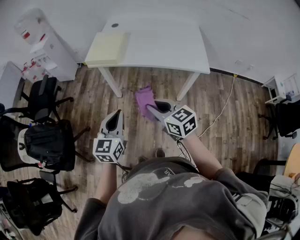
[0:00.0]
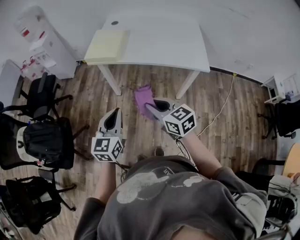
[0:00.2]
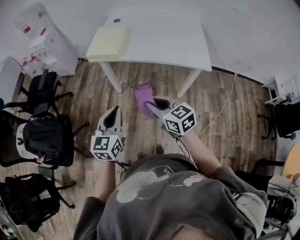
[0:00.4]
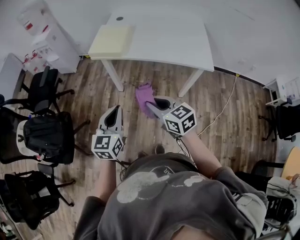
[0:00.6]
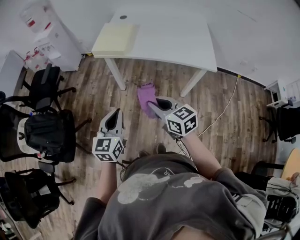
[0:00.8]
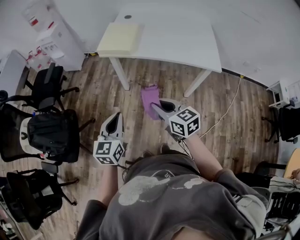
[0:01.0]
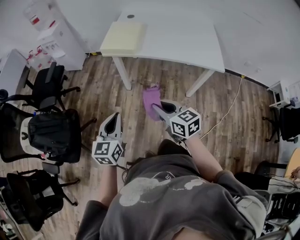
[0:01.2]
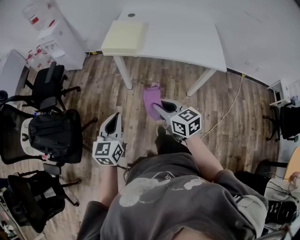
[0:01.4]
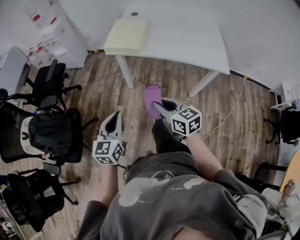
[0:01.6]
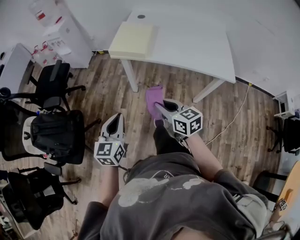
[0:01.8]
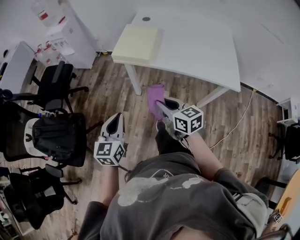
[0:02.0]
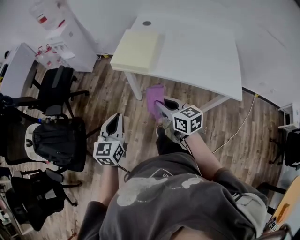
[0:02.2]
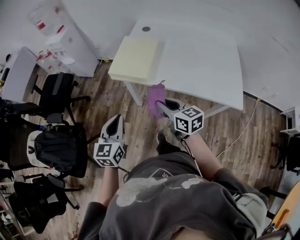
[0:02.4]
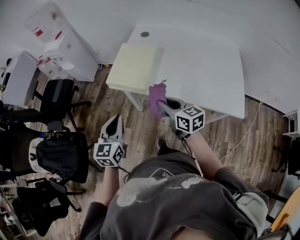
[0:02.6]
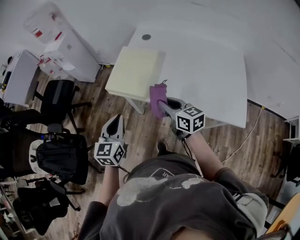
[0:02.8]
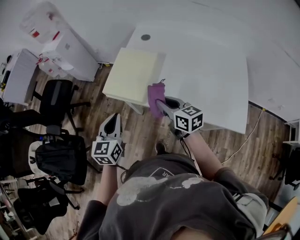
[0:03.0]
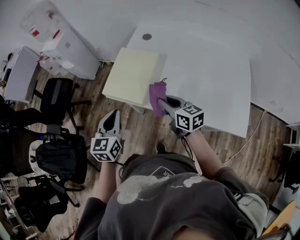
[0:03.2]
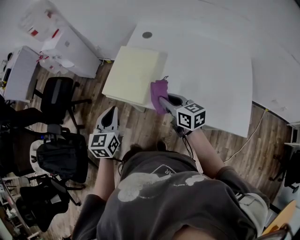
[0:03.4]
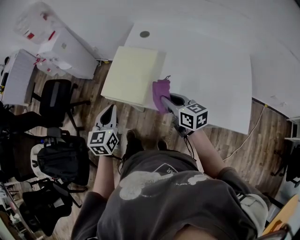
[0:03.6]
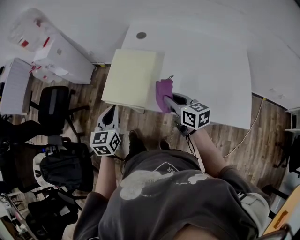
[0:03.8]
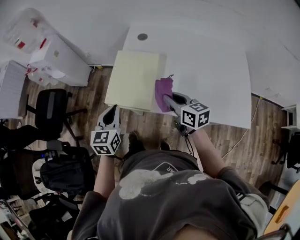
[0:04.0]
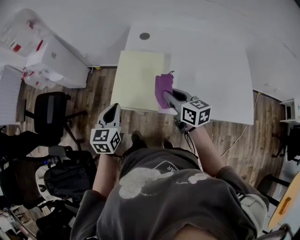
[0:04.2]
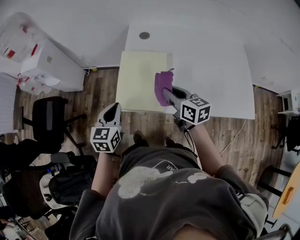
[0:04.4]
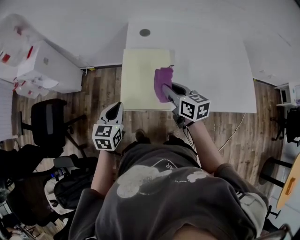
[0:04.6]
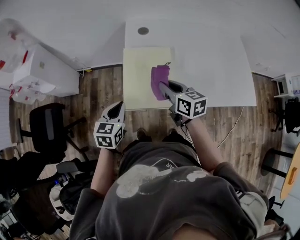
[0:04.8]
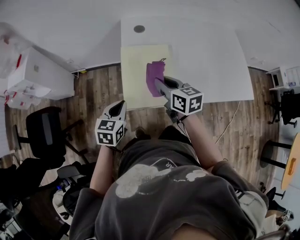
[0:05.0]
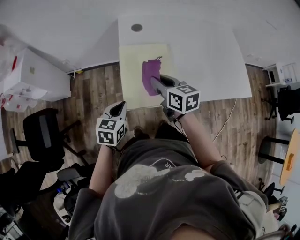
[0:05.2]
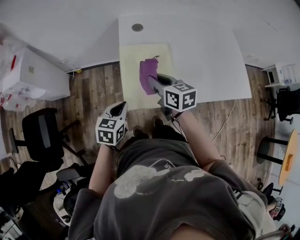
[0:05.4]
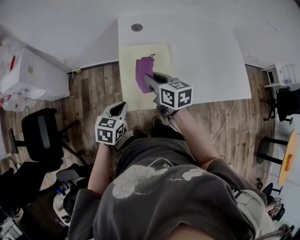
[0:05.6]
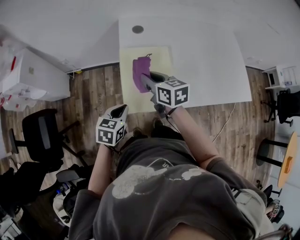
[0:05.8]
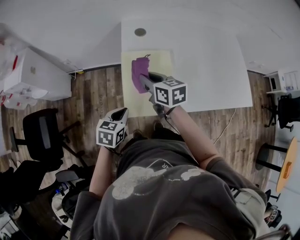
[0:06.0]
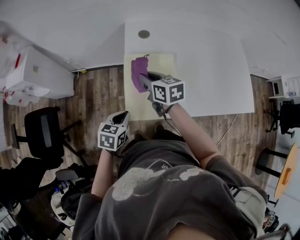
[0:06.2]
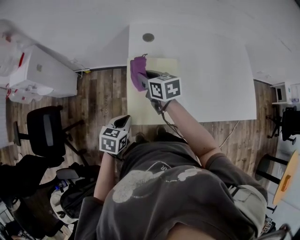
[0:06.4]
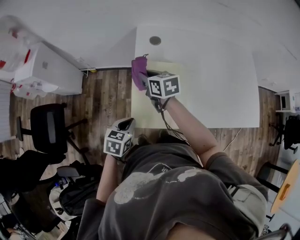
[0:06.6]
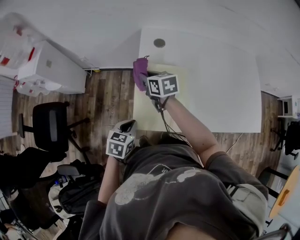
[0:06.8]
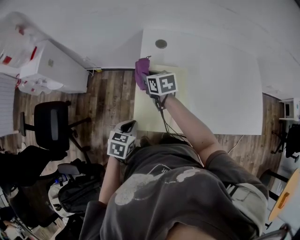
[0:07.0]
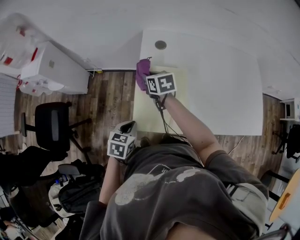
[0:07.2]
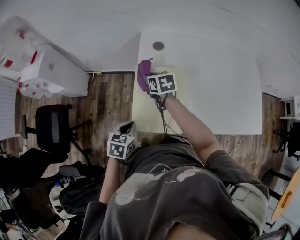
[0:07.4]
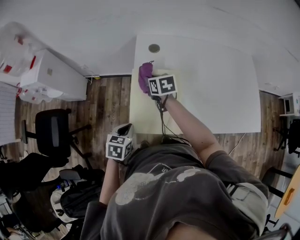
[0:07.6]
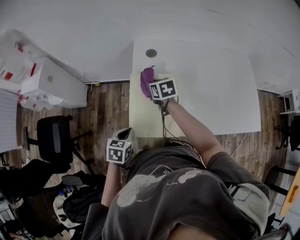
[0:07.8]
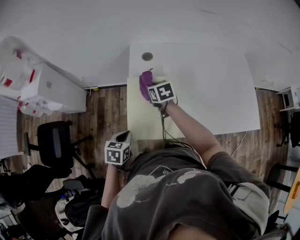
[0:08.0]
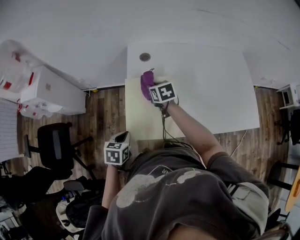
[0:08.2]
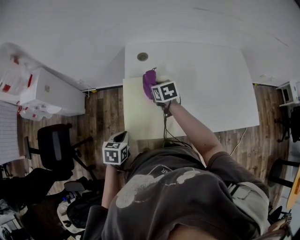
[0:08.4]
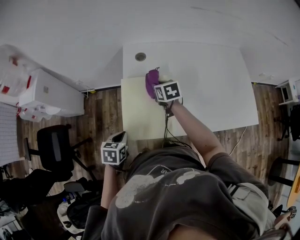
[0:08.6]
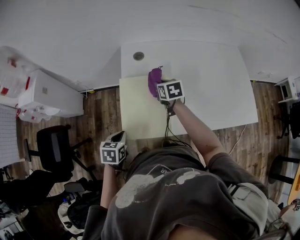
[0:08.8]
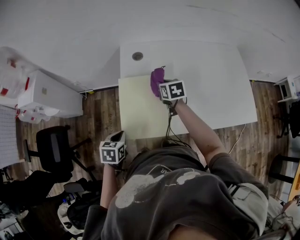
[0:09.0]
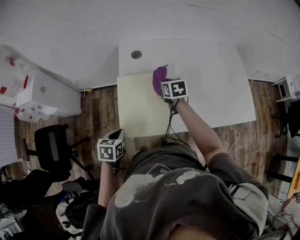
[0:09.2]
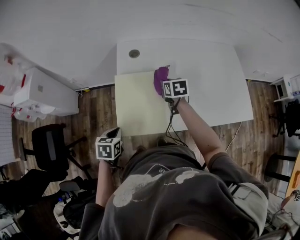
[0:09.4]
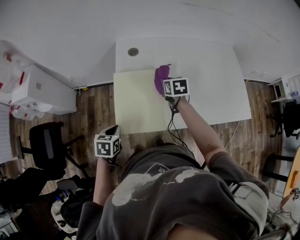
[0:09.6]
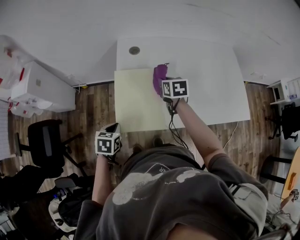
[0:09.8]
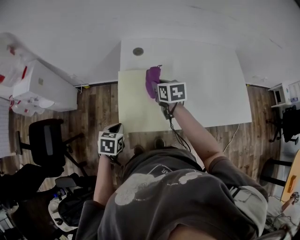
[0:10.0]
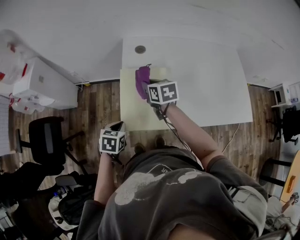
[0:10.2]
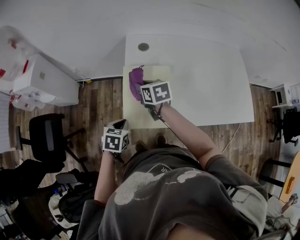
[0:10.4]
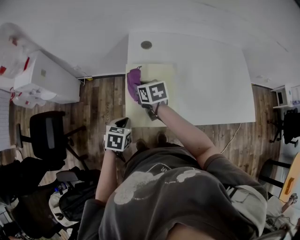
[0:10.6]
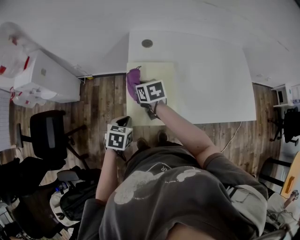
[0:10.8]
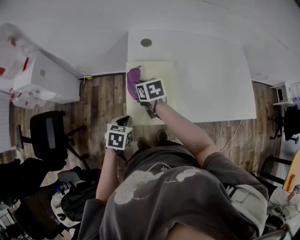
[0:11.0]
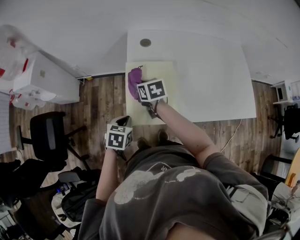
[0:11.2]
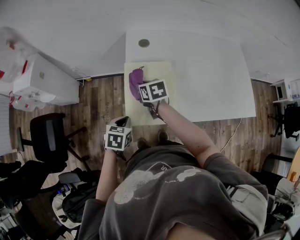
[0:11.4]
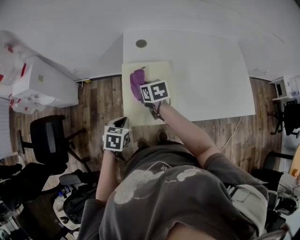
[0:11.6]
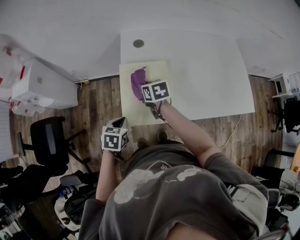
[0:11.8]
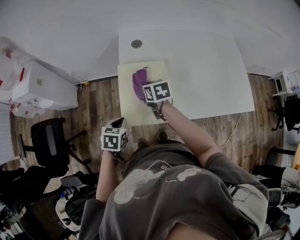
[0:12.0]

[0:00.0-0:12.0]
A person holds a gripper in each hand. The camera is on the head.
0:00.0 to 0:01.6: The grippers both shift to the left by about 10 cm.
0:01.6 to 0:03.0: Both grippers move forward and to the right, approximately 40 cm.
0:03.0 to 0:04.4: Both grippers travel together forward and to the left, some 20 cm.
0:04.4 to 0:06.0: The right gripper shifts approximately 15 cm to the left and forward; the left gripper is displaced downward by about 10 cm, and changes its angle by some 30 degrees.
0:06.0 to 0:07.6: The right gripper travels forward and downward by roughly 10 cm.
0:07.6 to 0:09.0: The right gripper goes approximately 15 cm to the right.
0:09.0 to 0:10.4: The right gripper heads to the left and backward, covering about 15 cm.
0:10.4 to 0:12.0: The right gripper changes place by roughly 5 cm.

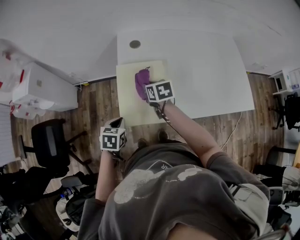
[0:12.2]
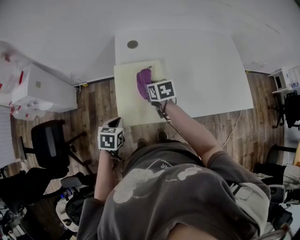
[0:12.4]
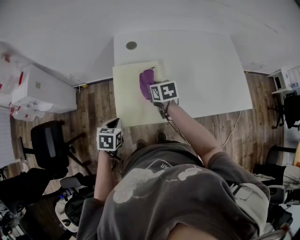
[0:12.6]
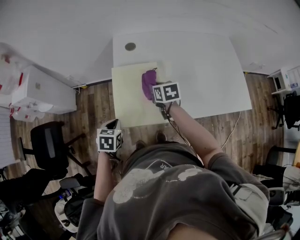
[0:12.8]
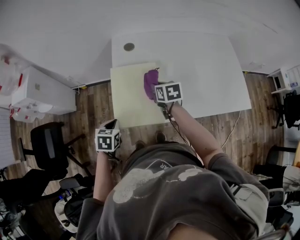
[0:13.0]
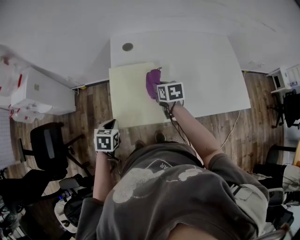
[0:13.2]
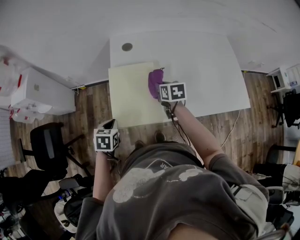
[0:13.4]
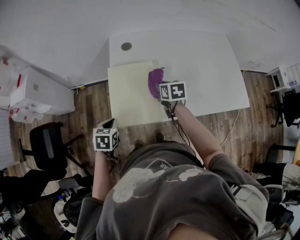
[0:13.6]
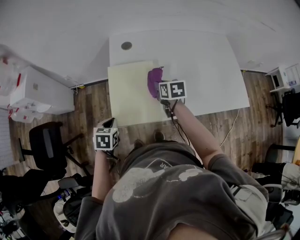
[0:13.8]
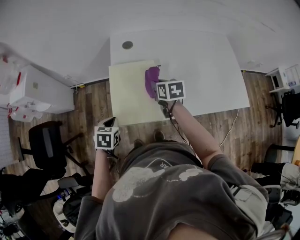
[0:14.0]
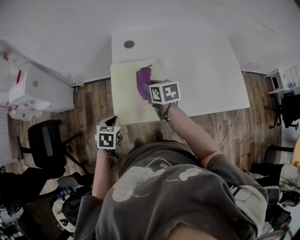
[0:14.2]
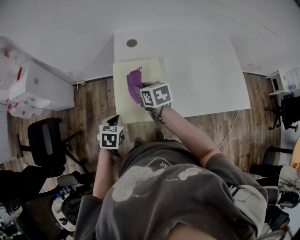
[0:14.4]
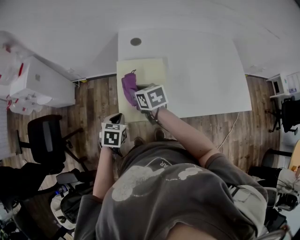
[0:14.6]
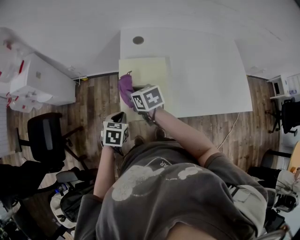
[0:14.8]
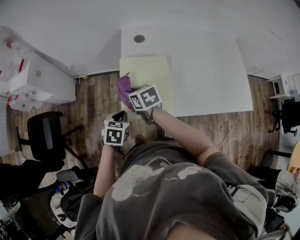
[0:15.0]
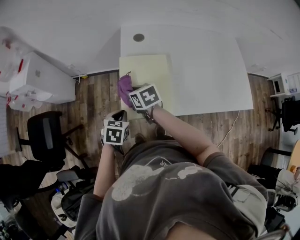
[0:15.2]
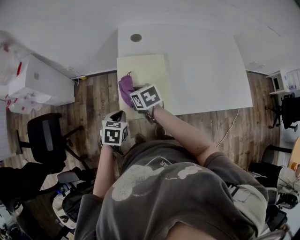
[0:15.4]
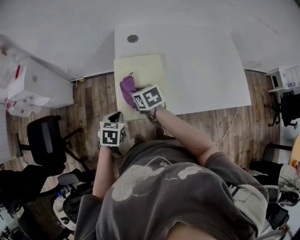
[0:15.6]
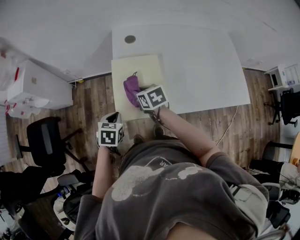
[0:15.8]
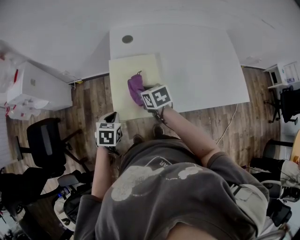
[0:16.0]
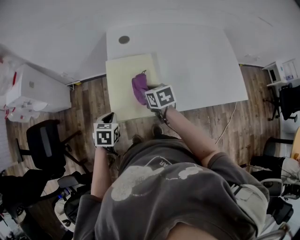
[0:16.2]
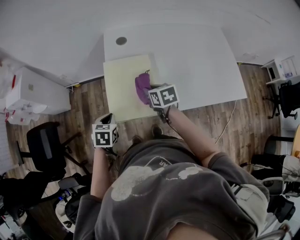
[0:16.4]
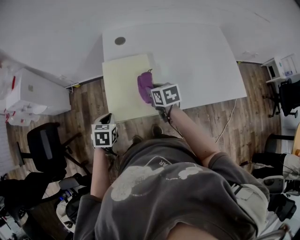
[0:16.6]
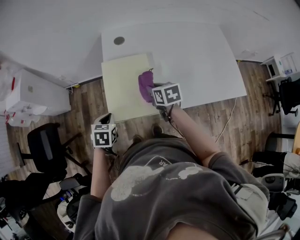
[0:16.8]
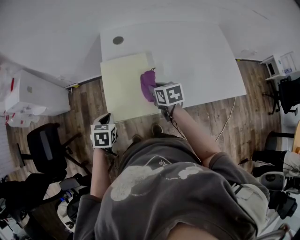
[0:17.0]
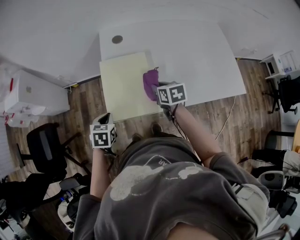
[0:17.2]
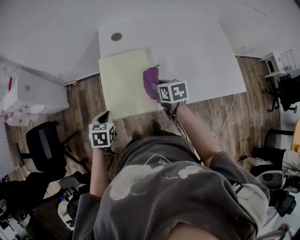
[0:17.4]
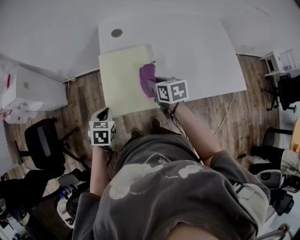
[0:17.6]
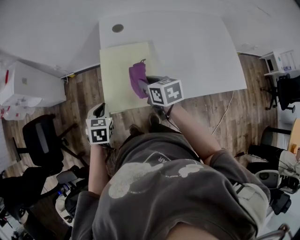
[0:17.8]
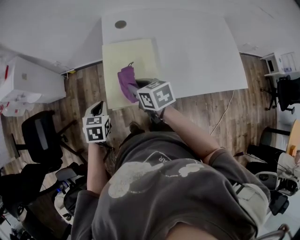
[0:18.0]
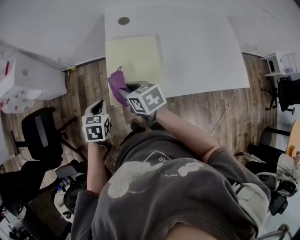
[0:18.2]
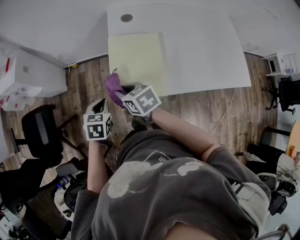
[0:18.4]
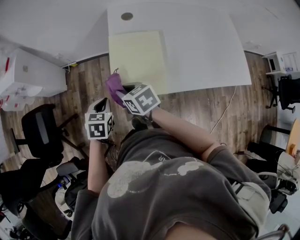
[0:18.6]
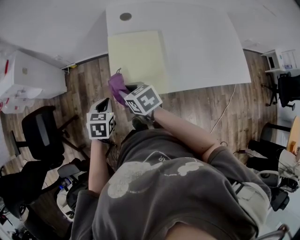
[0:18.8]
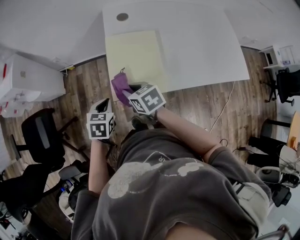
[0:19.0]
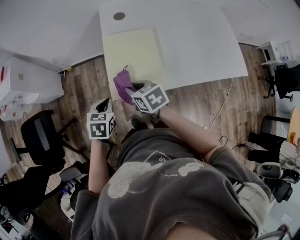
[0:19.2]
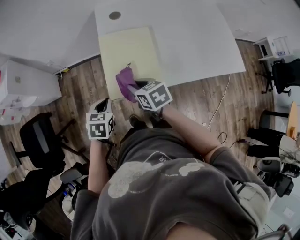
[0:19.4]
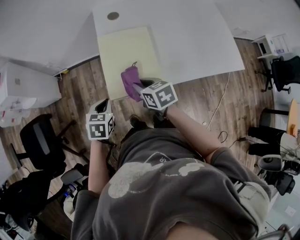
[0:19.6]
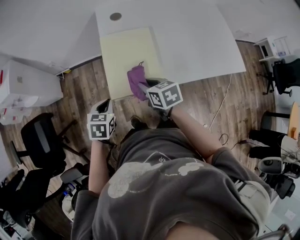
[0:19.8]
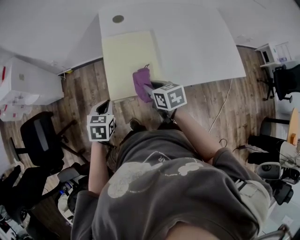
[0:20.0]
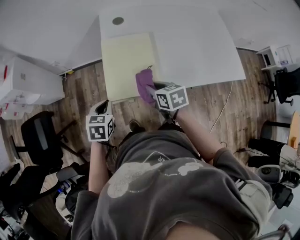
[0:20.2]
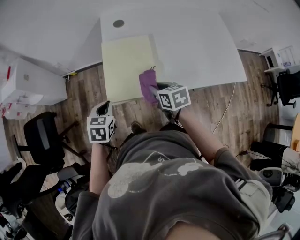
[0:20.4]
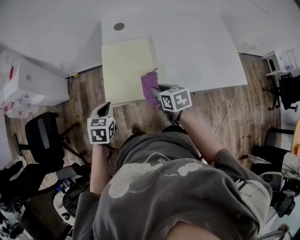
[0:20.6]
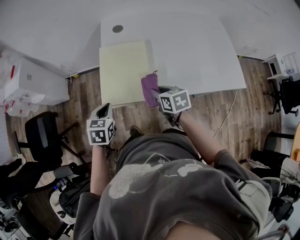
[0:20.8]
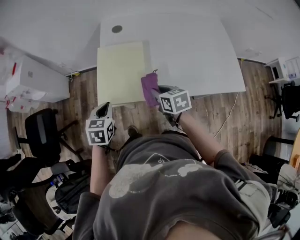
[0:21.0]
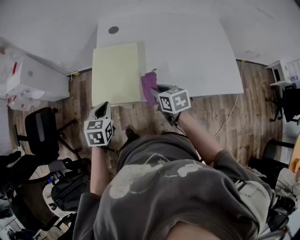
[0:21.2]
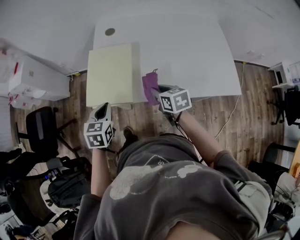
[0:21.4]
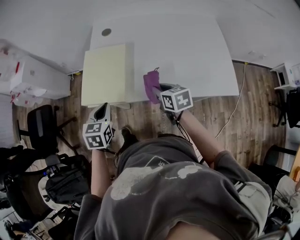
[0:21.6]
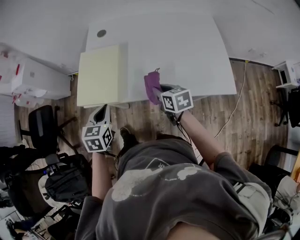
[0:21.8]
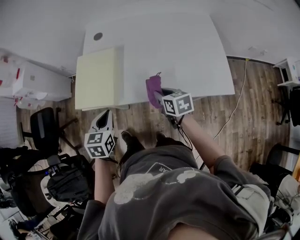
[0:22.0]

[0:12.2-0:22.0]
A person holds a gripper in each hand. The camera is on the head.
0:12.2 to 0:13.6: The right gripper shifts about 10 cm to the right.
0:13.6 to 0:15.0: The right gripper goes some 20 cm to the left, and turns by about 20 degrees.
0:15.0 to 0:16.4: The right gripper is displaced to the right by roughly 15 cm.
0:16.4 to 0:17.8: The right gripper moves approximately 5 cm to the right and comes back.
0:17.8 to 0:19.2: The right gripper travels to the left by roughly 10 cm.
0:19.2 to 0:20.6: The left gripper ends up some 5 cm from where it was, while the right gripper is displaced to the right by about 15 cm.
0:20.6 to 0:22.0: The left gripper shifts about 25 cm to the right and backward. The right gripper is displaced to the right by some 25 cm.

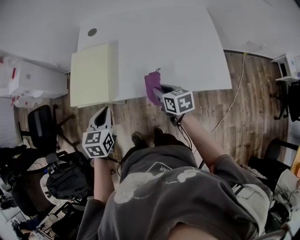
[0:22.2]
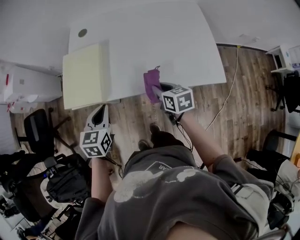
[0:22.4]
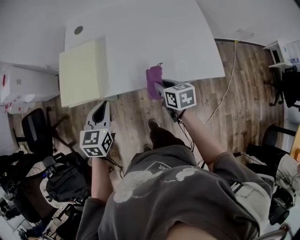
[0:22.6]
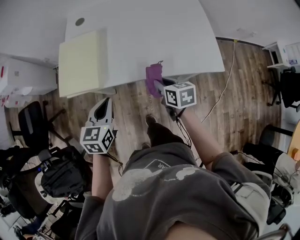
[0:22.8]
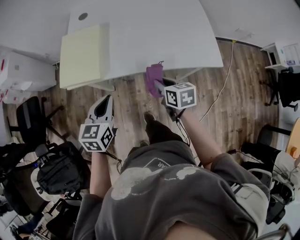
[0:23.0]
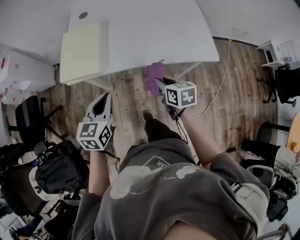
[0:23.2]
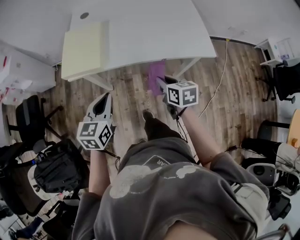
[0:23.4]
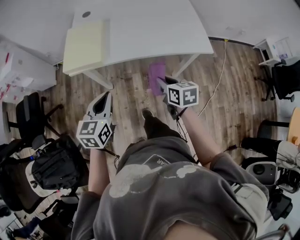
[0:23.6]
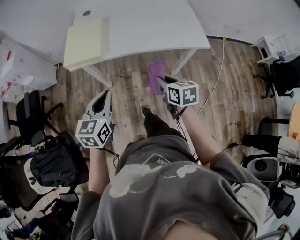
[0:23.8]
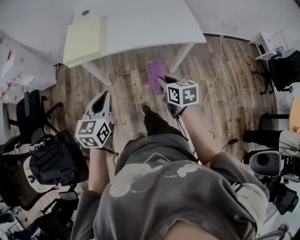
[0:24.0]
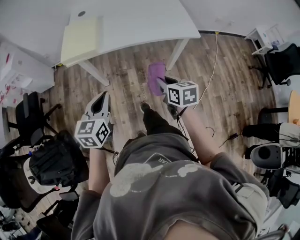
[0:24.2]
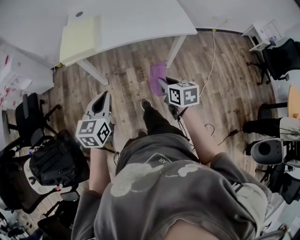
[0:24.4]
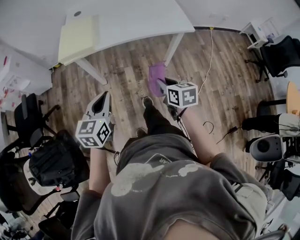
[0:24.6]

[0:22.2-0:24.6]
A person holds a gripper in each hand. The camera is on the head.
0:22.2 to 0:23.4: Both grippers move backward, some 15 cm.
0:23.4 to 0:24.6: The grippers both shift backward by about 20 cm.
